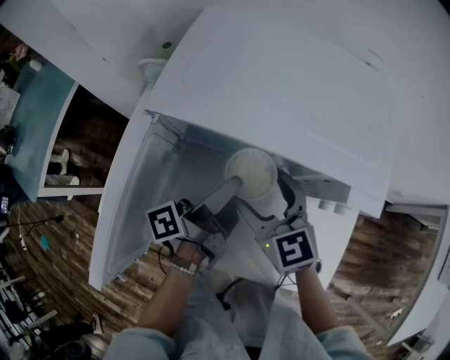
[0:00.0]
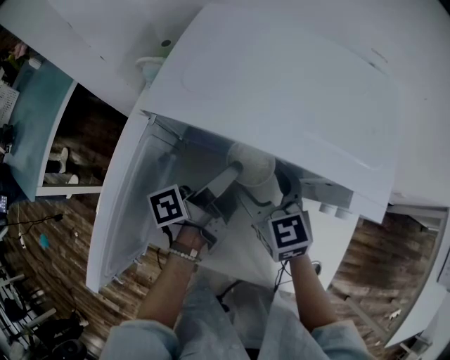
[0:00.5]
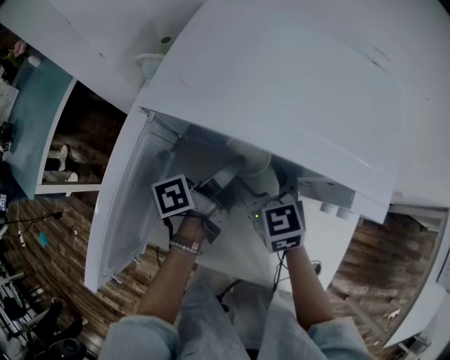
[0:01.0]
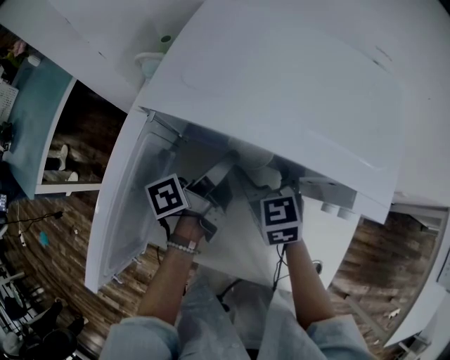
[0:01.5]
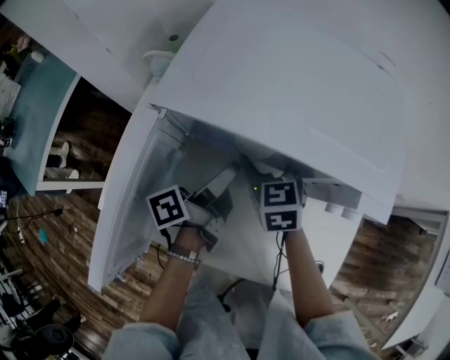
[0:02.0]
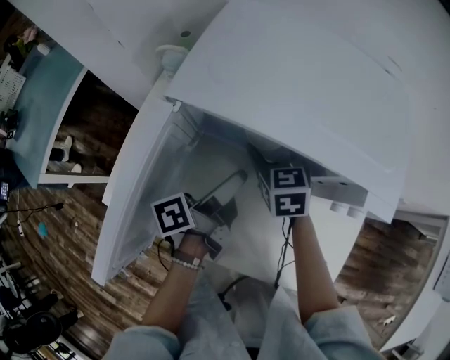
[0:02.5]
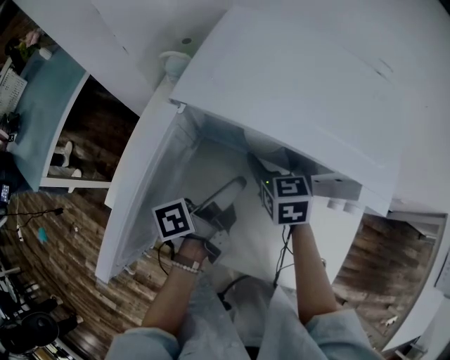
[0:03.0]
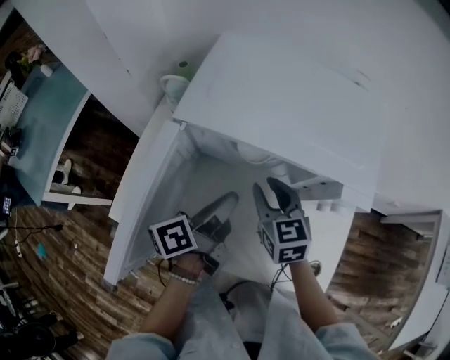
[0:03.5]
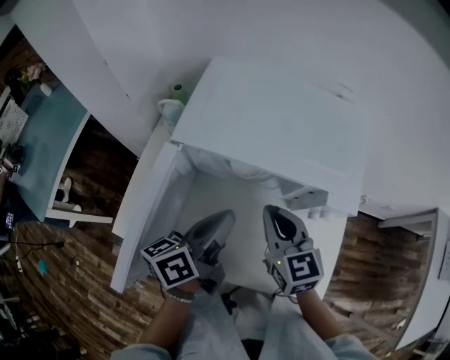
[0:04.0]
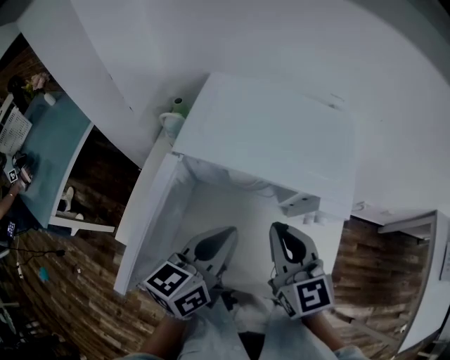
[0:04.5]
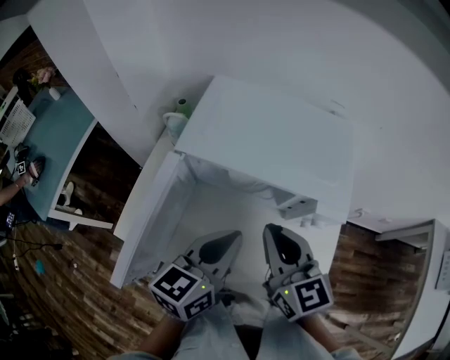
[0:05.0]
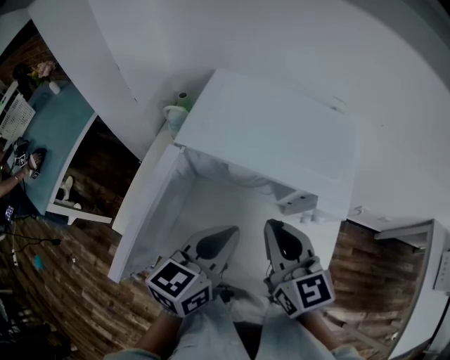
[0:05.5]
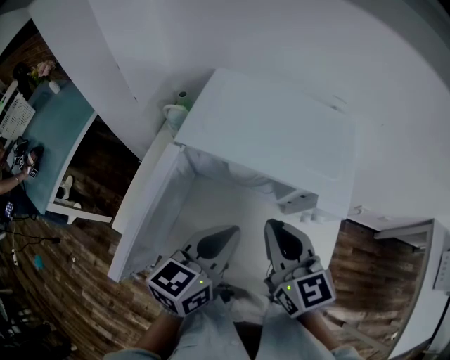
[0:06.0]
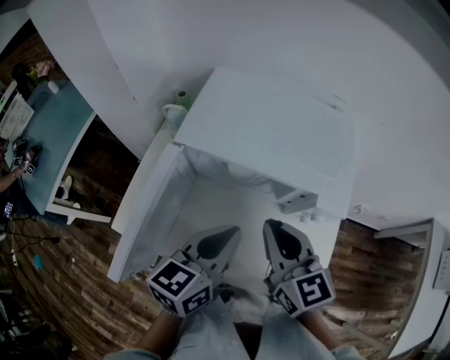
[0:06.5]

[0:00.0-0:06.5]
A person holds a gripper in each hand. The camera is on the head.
0:00.0 to 0:02.0: The right gripper changes place by about 10 cm.
0:02.0 to 0:04.5: The right gripper heads upward, covering about 20 cm, swivels about 20 degrees, and closes.

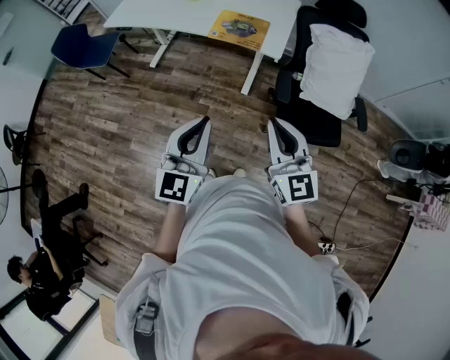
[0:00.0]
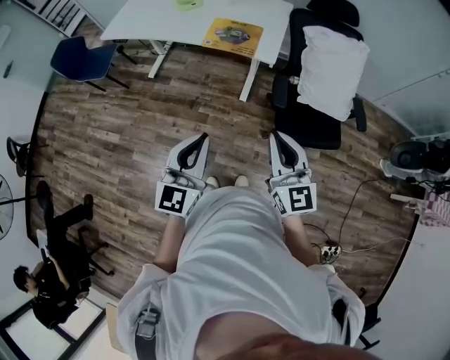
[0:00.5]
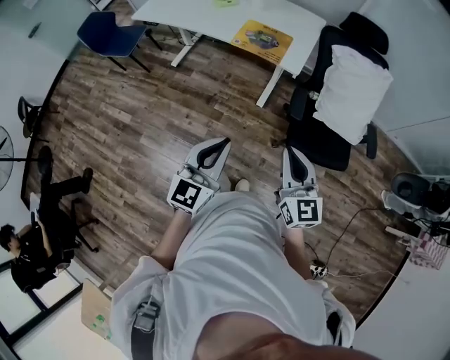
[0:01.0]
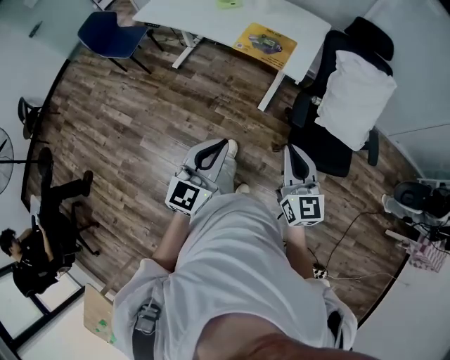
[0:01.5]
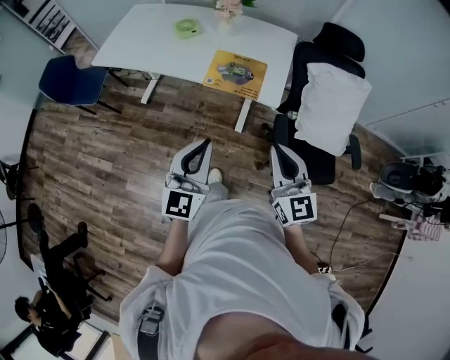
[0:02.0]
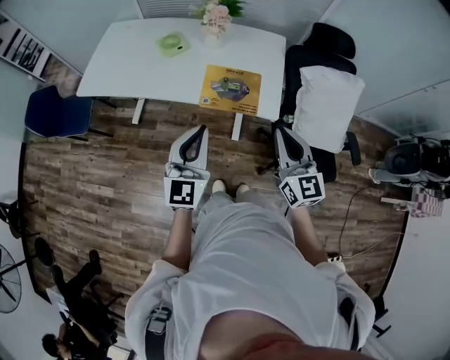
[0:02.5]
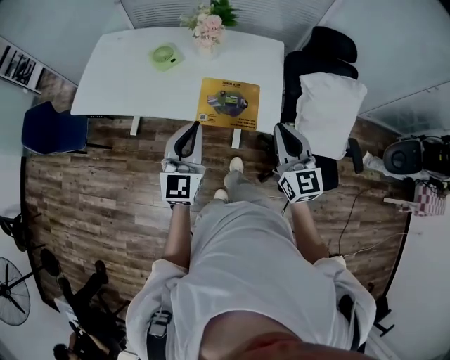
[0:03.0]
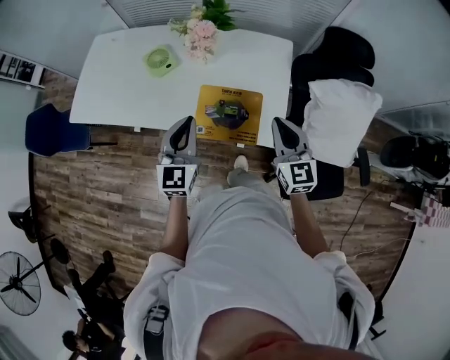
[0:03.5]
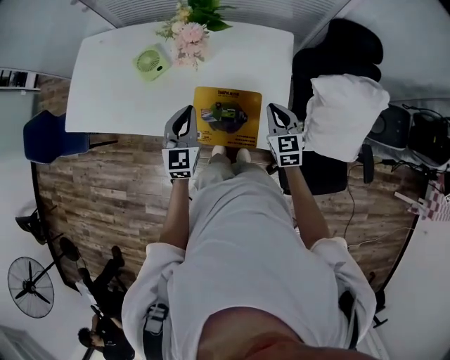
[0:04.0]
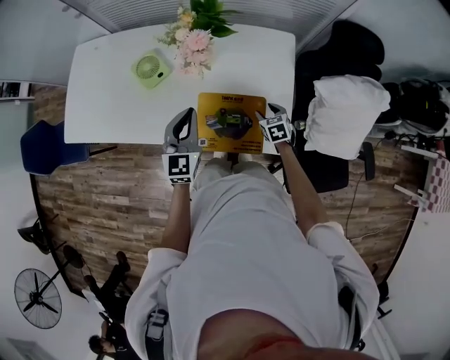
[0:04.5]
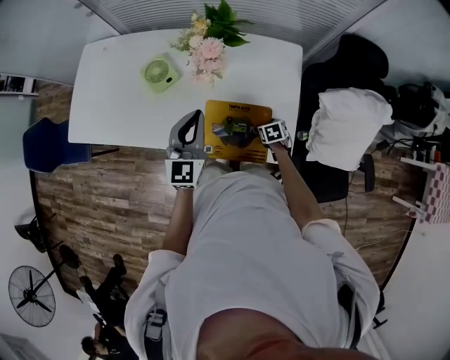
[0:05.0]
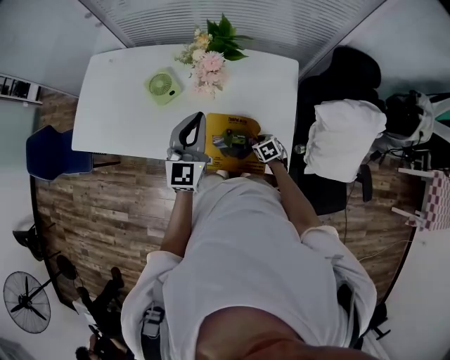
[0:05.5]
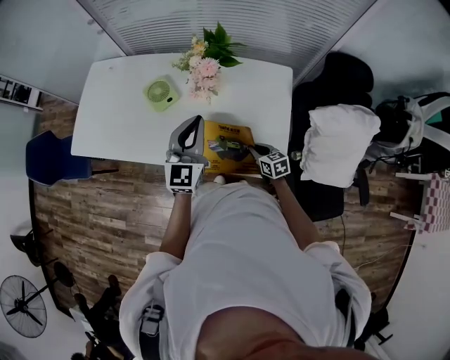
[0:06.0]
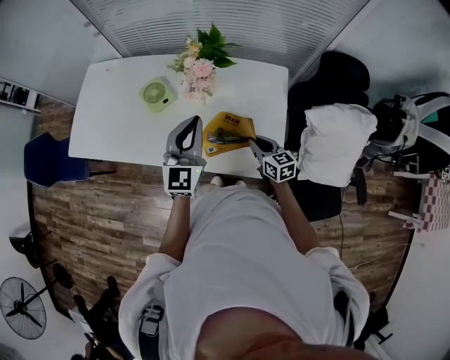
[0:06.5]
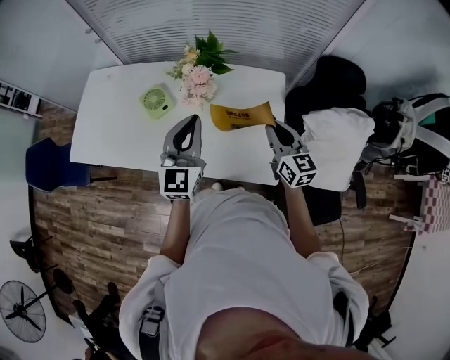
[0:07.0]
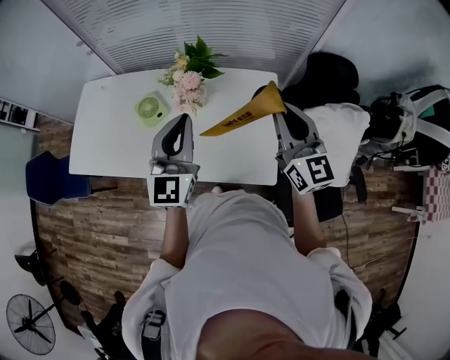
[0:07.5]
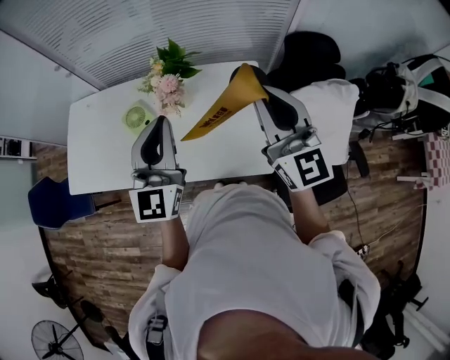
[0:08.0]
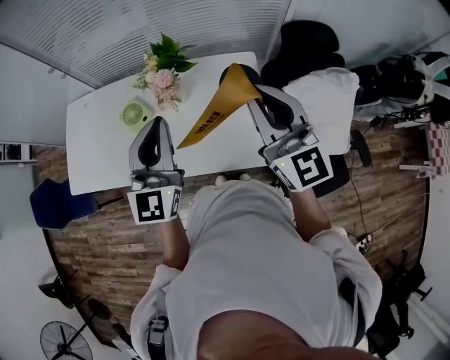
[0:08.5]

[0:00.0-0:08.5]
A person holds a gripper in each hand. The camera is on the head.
0:00.0 to 0:02.0: The grippers both shift forward by roughly 20 cm.
0:02.0 to 0:04.0: The pair of grippers is taken forward, roughly 40 cm. The right gripper moves downward, approximately 20 cm, and turns by roughly 30 degrees.
0:04.0 to 0:06.5: The right gripper goes about 5 cm to the left, travels downward and back again, some 25 cm each way, swivels about 30 degrees, and opens, then closes again. The left gripper heads upward, covering some 10 cm.
0:06.5 to 0:08.5: The right gripper goes about 35 cm upward, and points its fingers approximately 30 degrees further upward. Meanwhile the left gripper shifts about 15 cm upward.

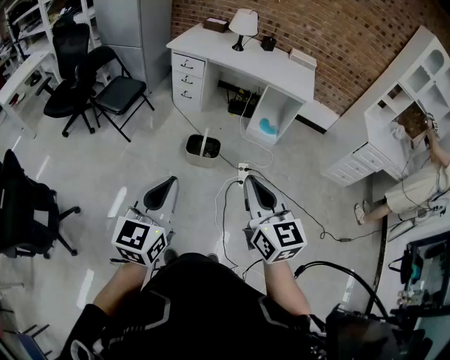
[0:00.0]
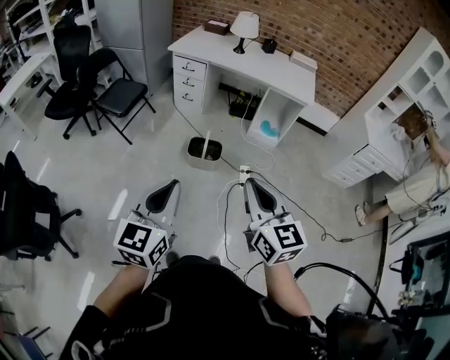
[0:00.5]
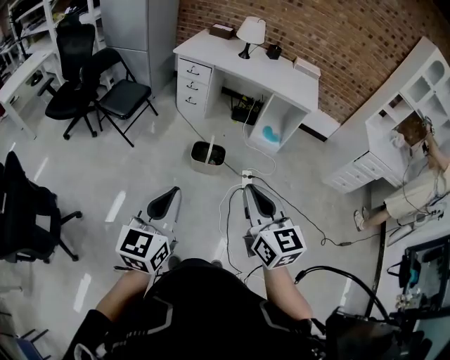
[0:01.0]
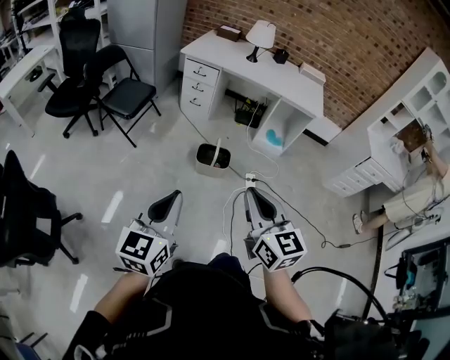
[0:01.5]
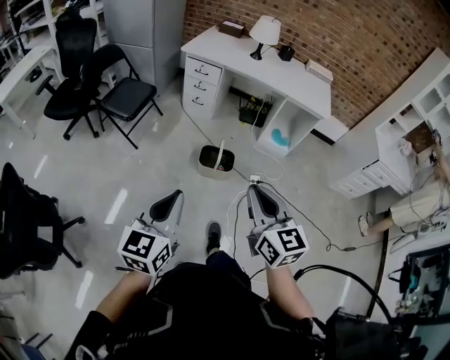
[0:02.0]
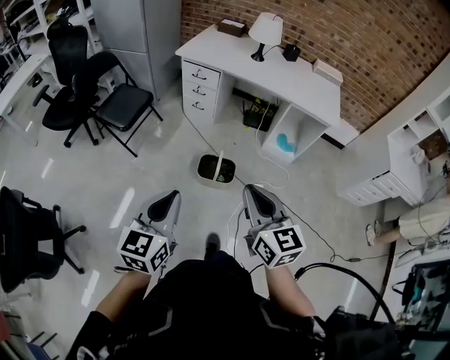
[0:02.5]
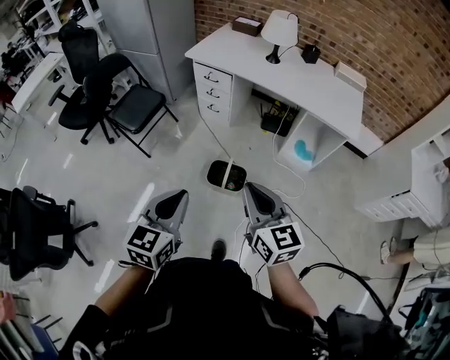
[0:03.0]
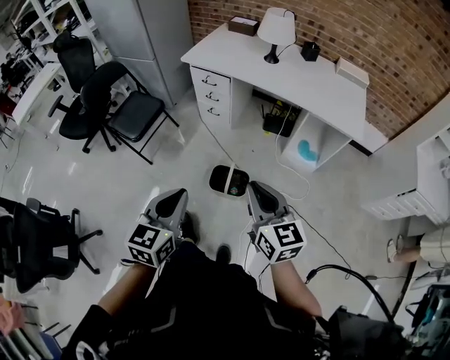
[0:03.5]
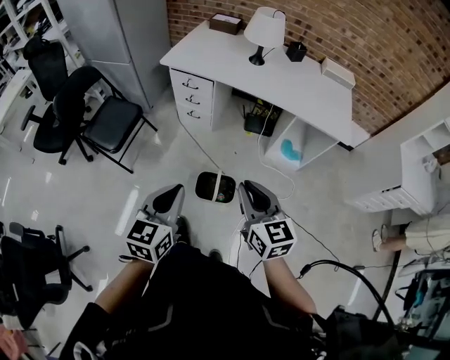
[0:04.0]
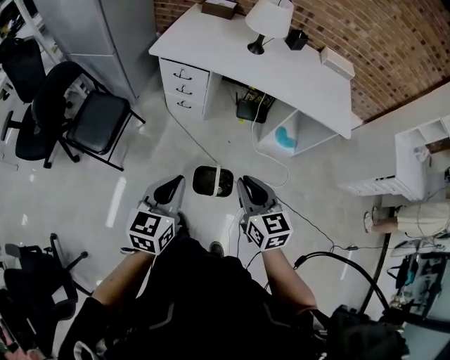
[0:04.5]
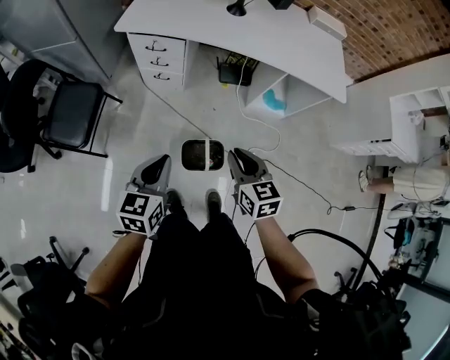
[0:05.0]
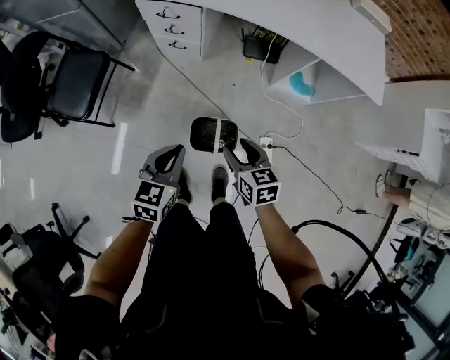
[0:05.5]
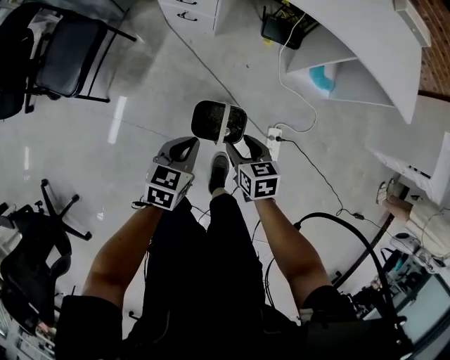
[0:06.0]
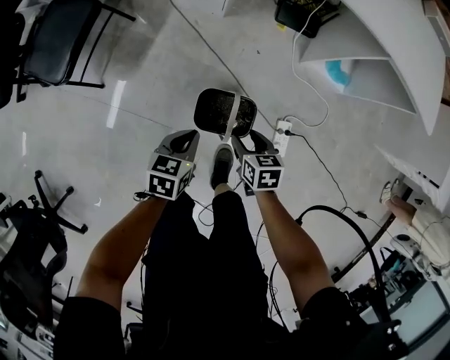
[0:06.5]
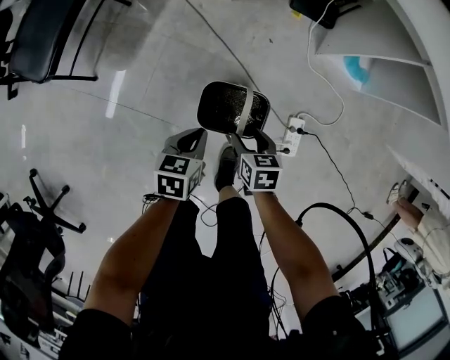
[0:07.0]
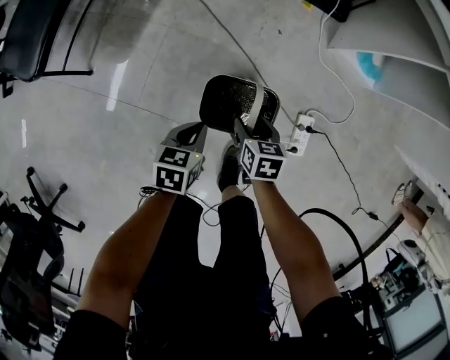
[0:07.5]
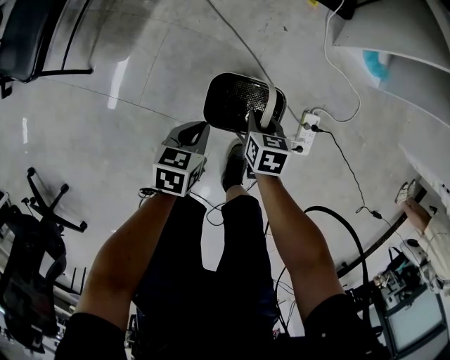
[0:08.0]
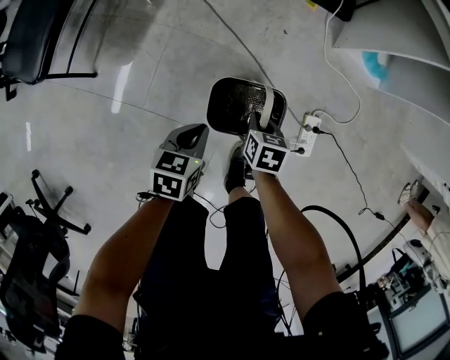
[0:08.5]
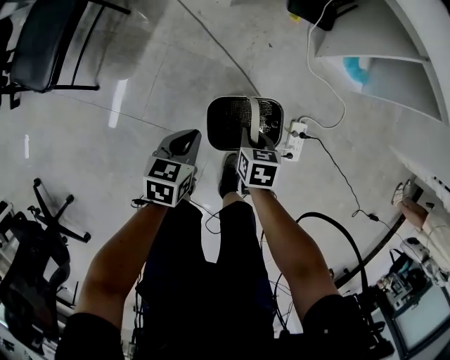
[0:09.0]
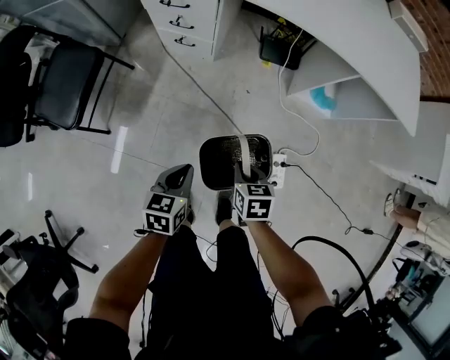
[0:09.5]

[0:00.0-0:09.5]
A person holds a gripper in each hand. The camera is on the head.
0:00.0 to 0:02.0: The right gripper is displaced to the left and forward by roughly 15 cm; the left gripper shifts roughly 15 cm to the left, forward and downward.
0:02.0 to 0:04.0: The two grippers go roughly 35 cm forward.
0:04.0 to 0:05.5: Both grippers move downward and forward, about 30 cm. The right gripper rotates roughly 30 degrees, and opens up.
0:05.5 to 0:07.5: The two grippers go roughly 40 cm downward. The left gripper rotates approximately 30 degrees. Meanwhile the right gripper rotates some 20 degrees.
0:07.5 to 0:09.5: Both grippers move upward, roughly 20 cm. The right gripper closes.

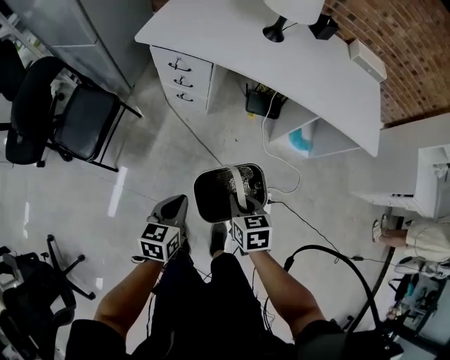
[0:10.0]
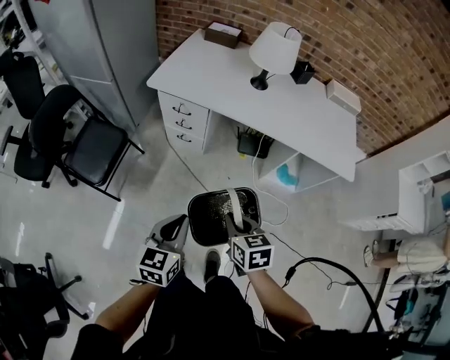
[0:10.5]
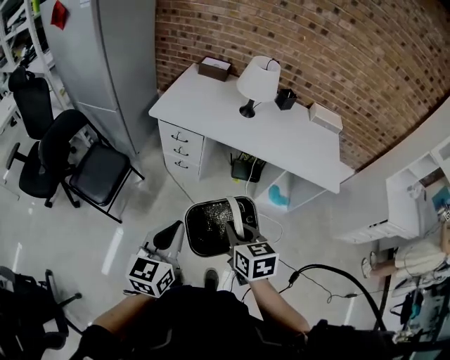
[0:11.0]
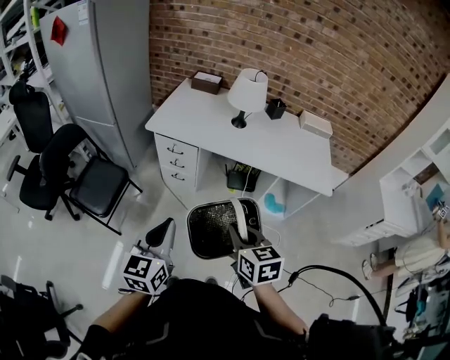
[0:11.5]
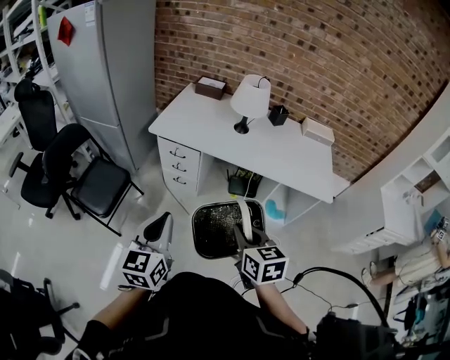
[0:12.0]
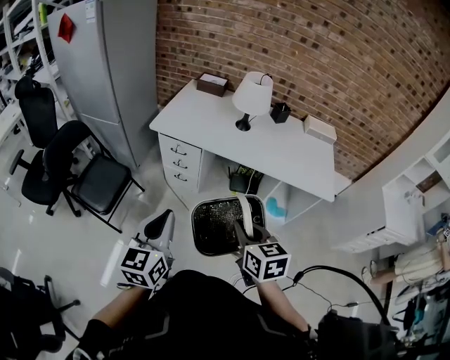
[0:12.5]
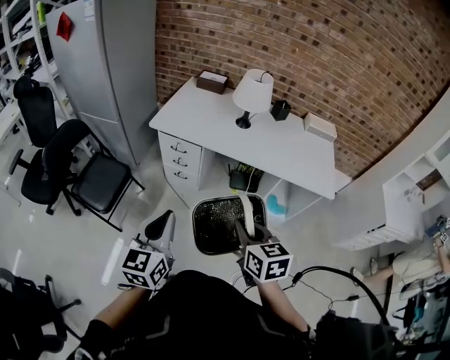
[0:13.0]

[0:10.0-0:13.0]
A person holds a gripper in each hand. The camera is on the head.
0:10.0 to 0:11.5: The two grippers go approximately 30 cm upward. The right gripper turns by approximately 20 degrees; the left gripper changes its angle by approximately 30 degrees.
0:11.5 to 0:13.0: There are only small adjustments of the grippers.
